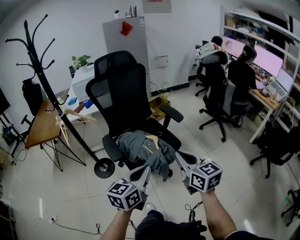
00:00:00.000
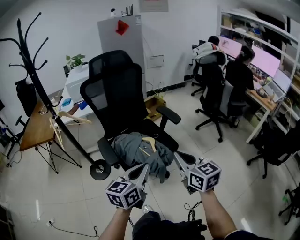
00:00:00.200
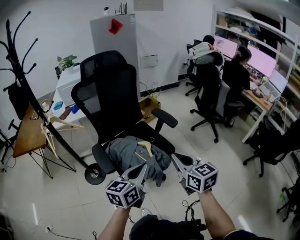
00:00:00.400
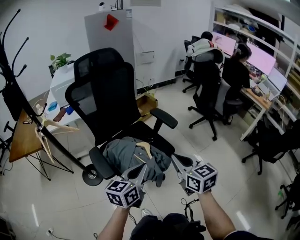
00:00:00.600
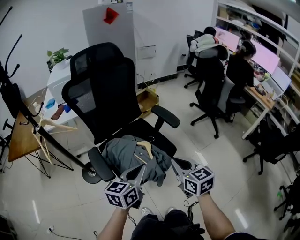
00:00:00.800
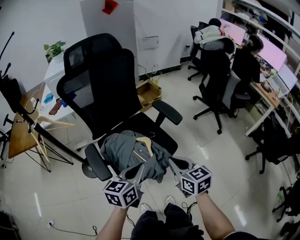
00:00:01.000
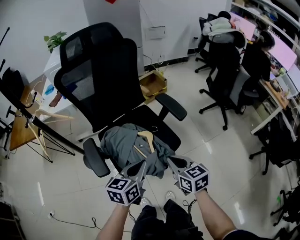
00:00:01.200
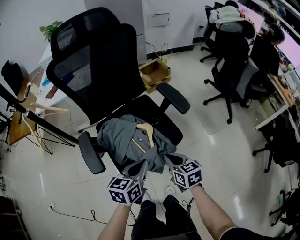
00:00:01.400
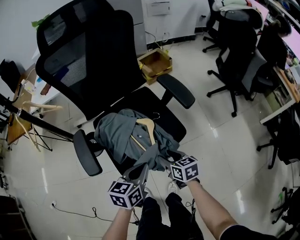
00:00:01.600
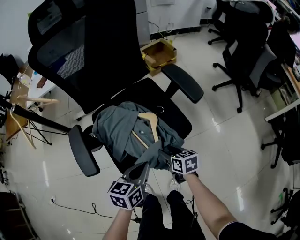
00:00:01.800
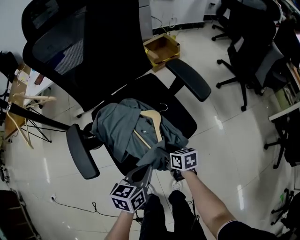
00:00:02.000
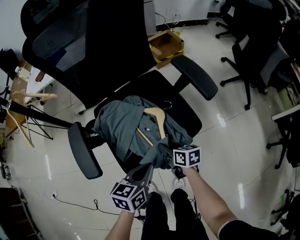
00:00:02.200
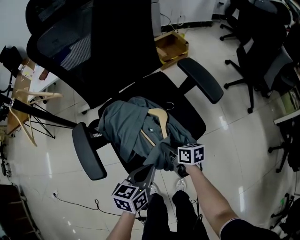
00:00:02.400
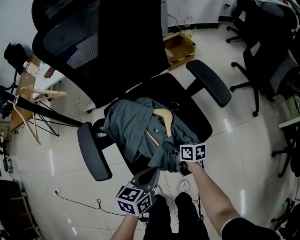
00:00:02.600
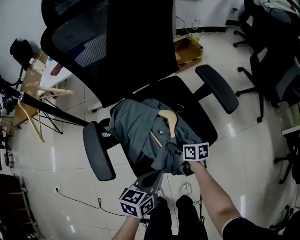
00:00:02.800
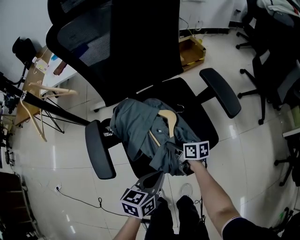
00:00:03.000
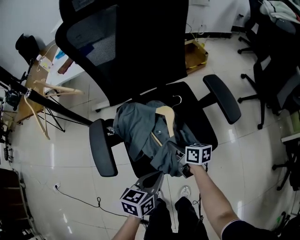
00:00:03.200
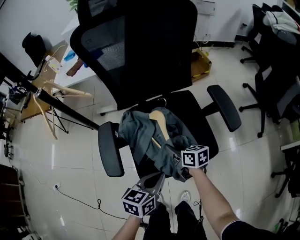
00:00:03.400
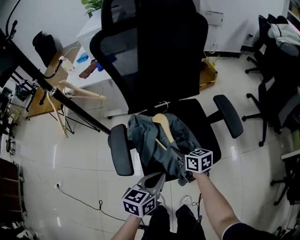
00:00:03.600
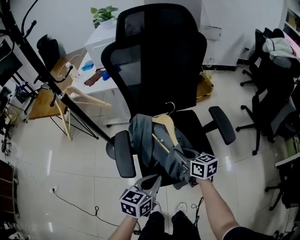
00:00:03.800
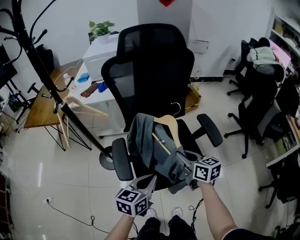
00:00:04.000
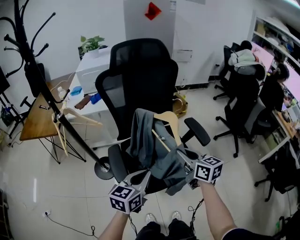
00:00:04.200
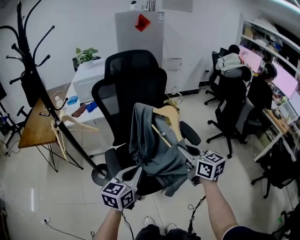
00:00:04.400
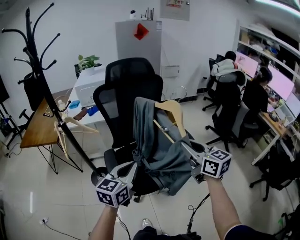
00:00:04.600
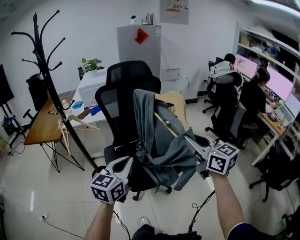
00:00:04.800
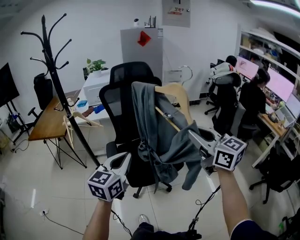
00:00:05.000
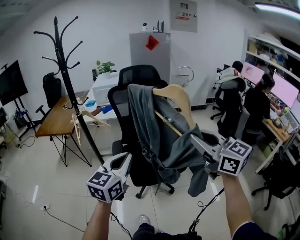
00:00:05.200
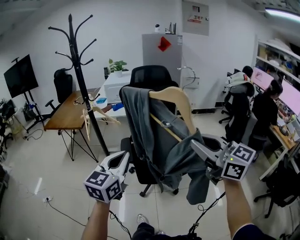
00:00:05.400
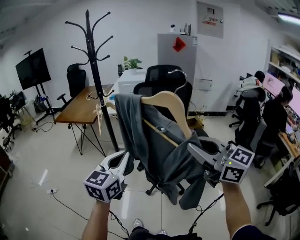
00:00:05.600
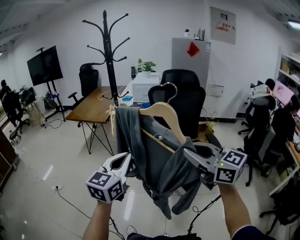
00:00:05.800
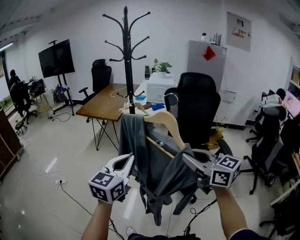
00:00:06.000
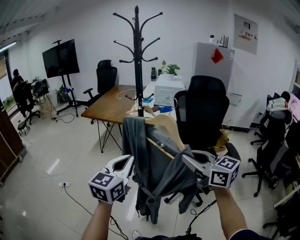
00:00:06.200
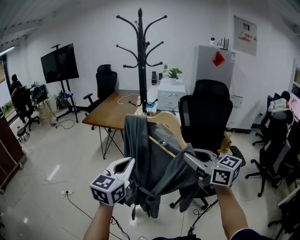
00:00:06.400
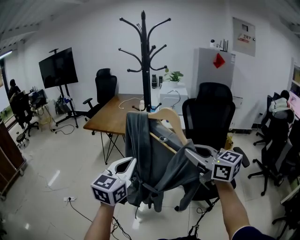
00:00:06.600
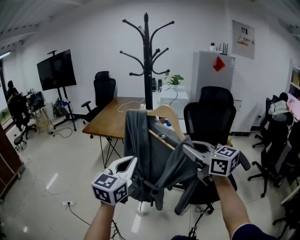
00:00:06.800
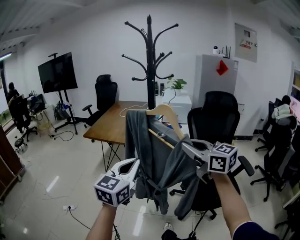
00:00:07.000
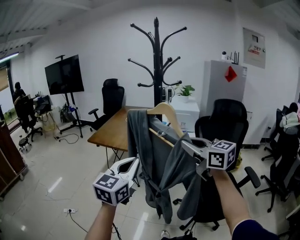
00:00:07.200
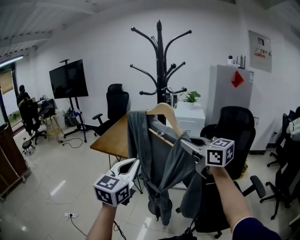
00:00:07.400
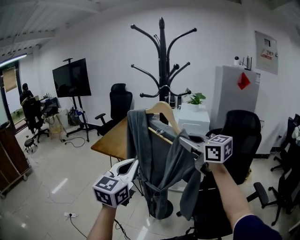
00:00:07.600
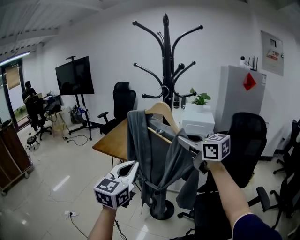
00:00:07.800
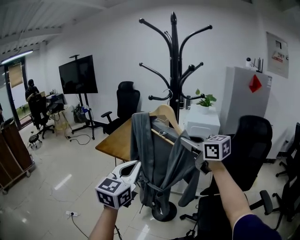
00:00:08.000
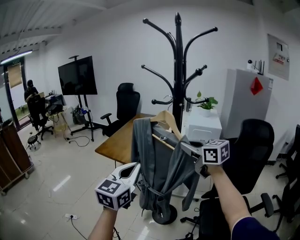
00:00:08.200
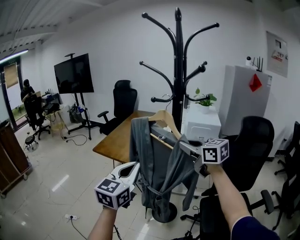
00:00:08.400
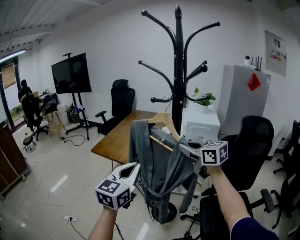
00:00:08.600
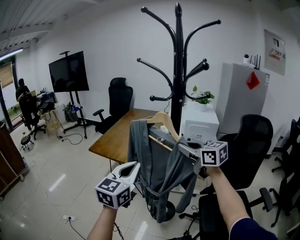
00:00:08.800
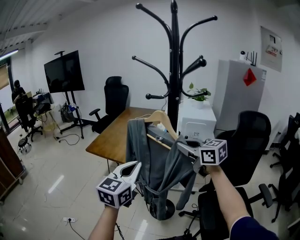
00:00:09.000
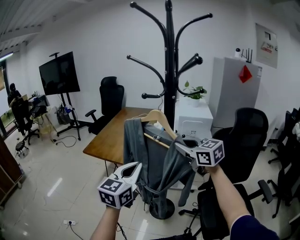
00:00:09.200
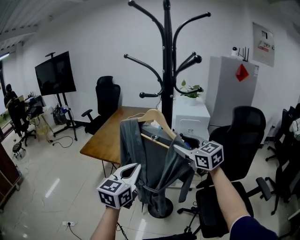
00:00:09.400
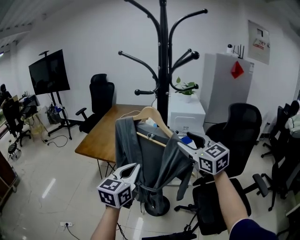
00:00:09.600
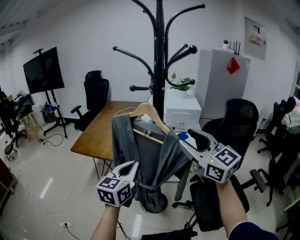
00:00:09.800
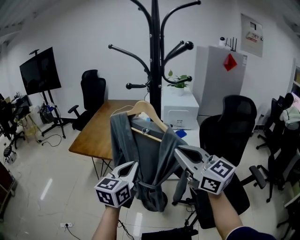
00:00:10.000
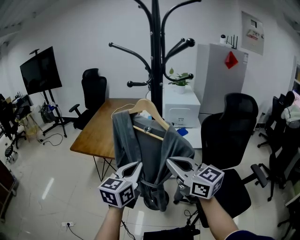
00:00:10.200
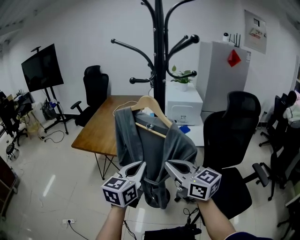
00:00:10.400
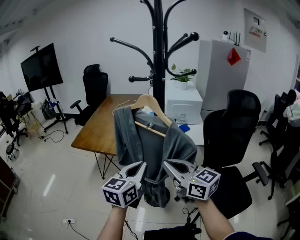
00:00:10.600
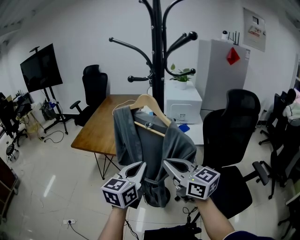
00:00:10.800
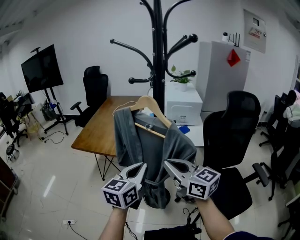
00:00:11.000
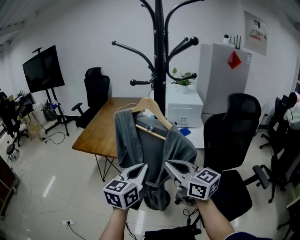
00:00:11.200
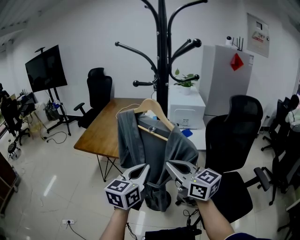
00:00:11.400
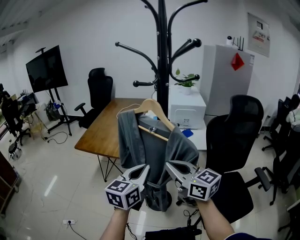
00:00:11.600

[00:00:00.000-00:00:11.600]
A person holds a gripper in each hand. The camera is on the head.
00:00:00.000 to 00:00:01.400: The right gripper travels downward and forward by approximately 30 cm, and changes its angle by some 30 degrees, while the left gripper goes some 25 cm forward and downward.
00:00:01.400 to 00:00:02.800: The right gripper goes approximately 25 cm downward and forward, rotates roughly 30 degrees, and opens up, while the left gripper moves downward, some 10 cm.
00:00:02.800 to 00:00:04.400: The right gripper heads upward, covering some 50 cm, and turns by some 50 degrees, while the left gripper moves upward, about 25 cm, and turns by about 30 degrees.
00:00:04.400 to 00:00:05.800: The left gripper shifts by roughly 30 cm, and swivels some 30 degrees. Meanwhile the right gripper moves roughly 30 cm, and swivels approximately 40 degrees.
00:00:05.800 to 00:00:07.200: The two grippers go approximately 35 cm forward and to the left.
00:00:07.200 to 00:00:08.800: Both grippers move forward, some 25 cm.
00:00:08.800 to 00:00:10.200: The left gripper travels downward and to the right by about 10 cm. Meanwhile the right gripper moves backward, approximately 10 cm, and opens, then closes again.
00:00:10.200 to 00:00:11.600: The grippers move only a little.

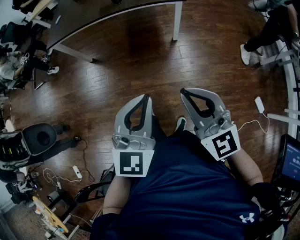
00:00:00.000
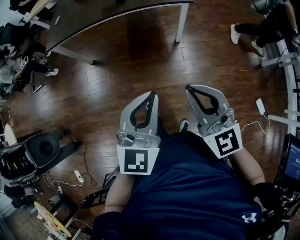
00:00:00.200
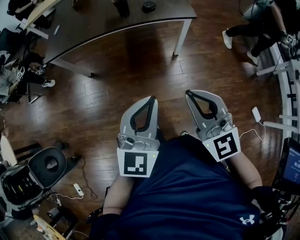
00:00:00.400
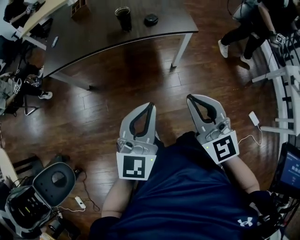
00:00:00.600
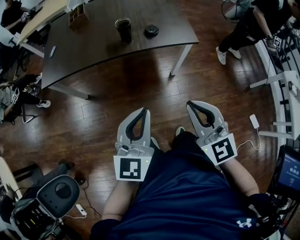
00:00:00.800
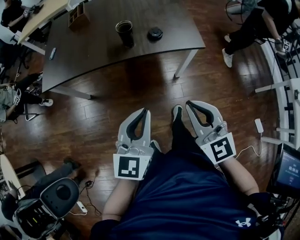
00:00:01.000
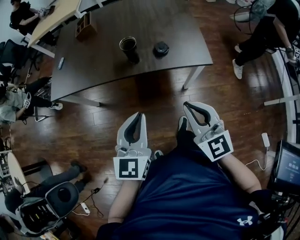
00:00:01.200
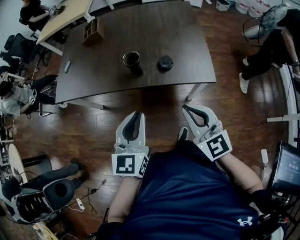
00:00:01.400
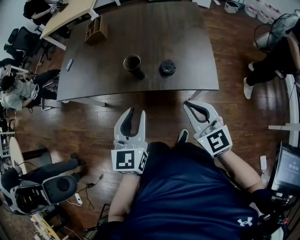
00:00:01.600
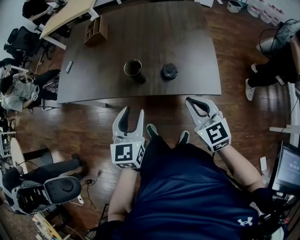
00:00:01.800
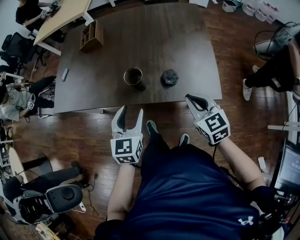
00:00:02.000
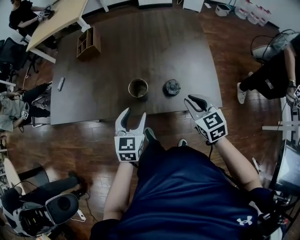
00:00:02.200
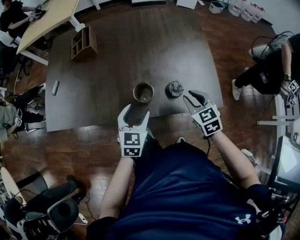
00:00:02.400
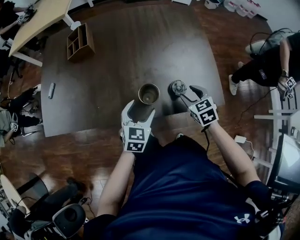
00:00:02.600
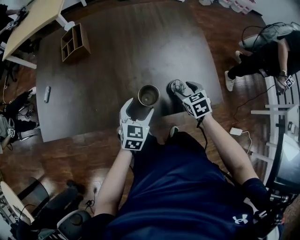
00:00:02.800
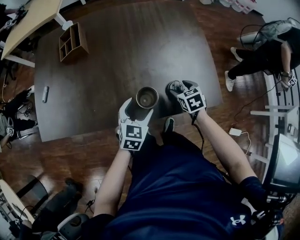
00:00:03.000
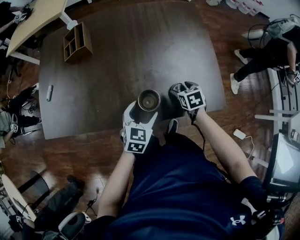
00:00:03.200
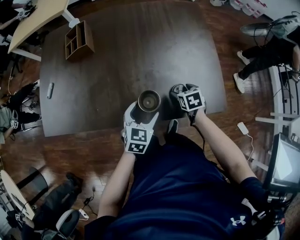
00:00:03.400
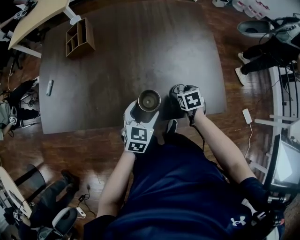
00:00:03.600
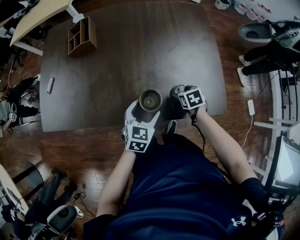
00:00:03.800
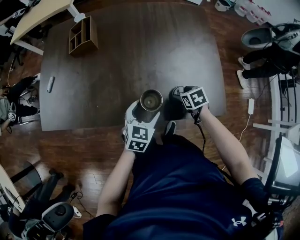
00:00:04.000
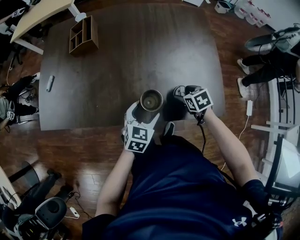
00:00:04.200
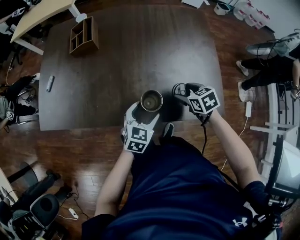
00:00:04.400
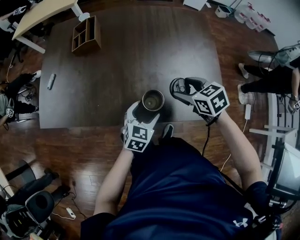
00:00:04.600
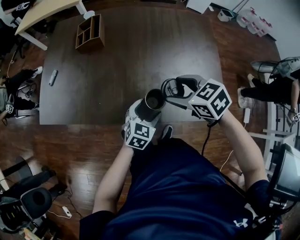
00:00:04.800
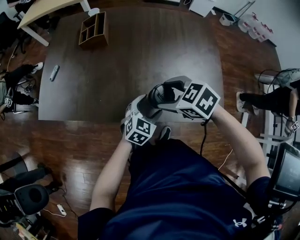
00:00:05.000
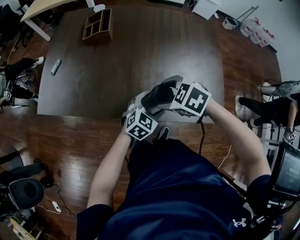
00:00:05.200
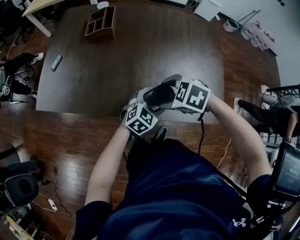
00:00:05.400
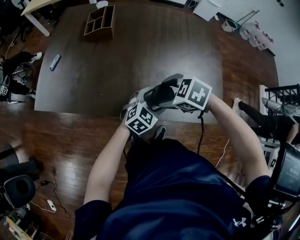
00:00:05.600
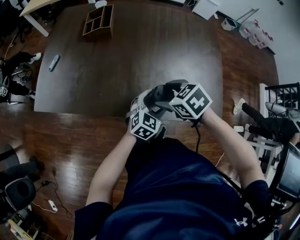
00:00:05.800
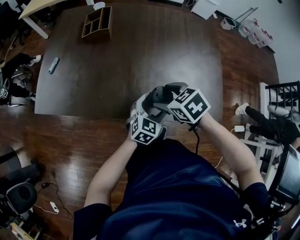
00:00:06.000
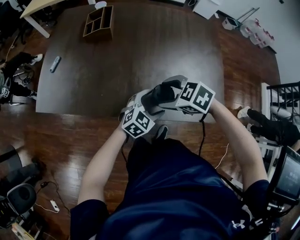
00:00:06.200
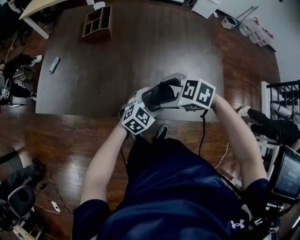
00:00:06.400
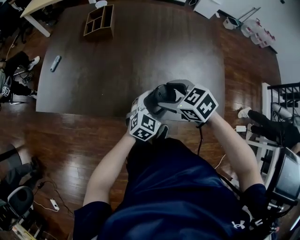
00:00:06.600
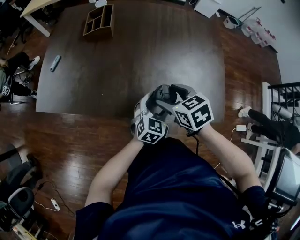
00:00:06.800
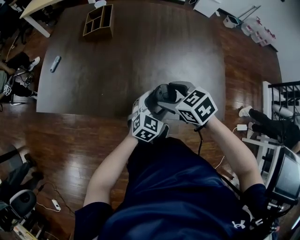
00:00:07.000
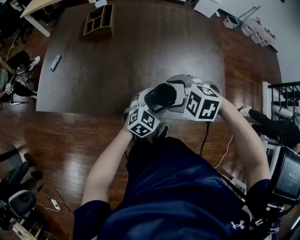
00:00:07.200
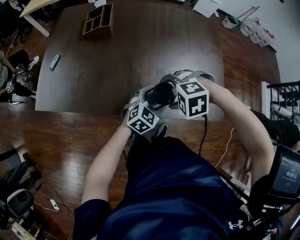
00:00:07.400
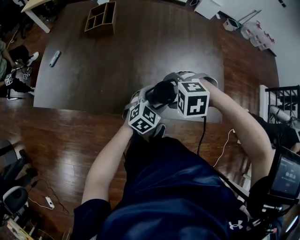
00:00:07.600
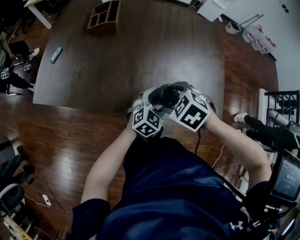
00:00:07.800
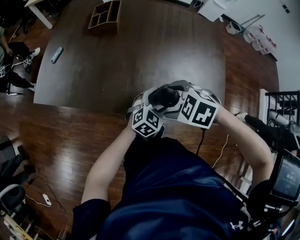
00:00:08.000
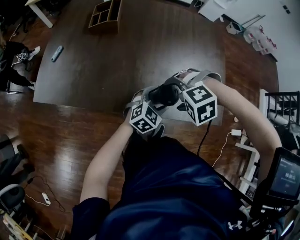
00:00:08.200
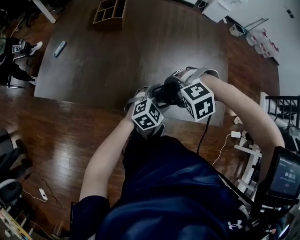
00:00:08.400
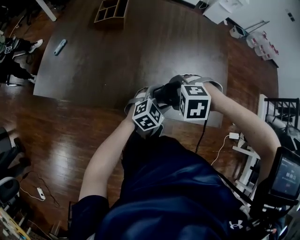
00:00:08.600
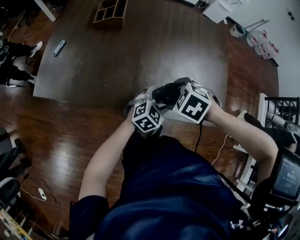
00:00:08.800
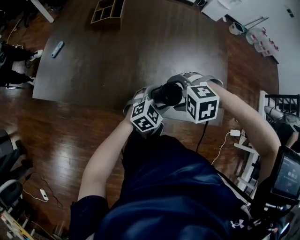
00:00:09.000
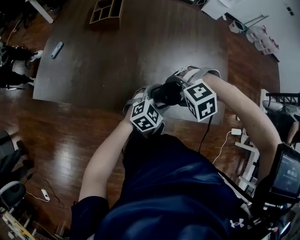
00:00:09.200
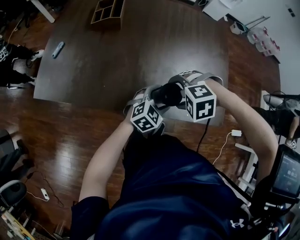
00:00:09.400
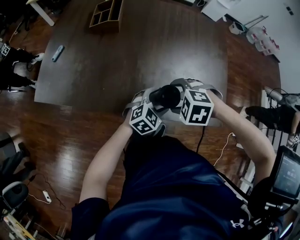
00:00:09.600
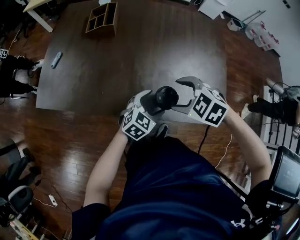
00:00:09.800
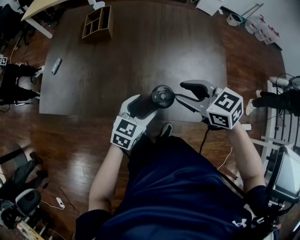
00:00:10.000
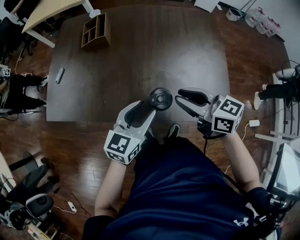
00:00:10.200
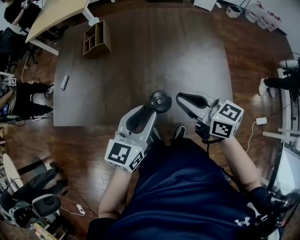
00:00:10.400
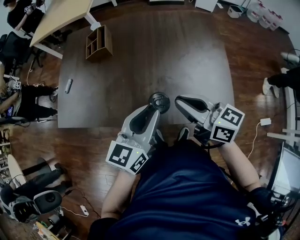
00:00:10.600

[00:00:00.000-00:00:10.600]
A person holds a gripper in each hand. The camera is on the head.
00:00:00.000 to 00:00:01.600: The left gripper heads to the left, covering approximately 15 cm. The right gripper goes forward and backward, about 20 cm each way, reversing 2 times.
00:00:01.600 to 00:00:03.000: Both grippers move downward and forward, about 30 cm. The left gripper turns by some 30 degrees, and opens its fingers; the right gripper tips its fingers downward by approximately 40 degrees, and opens.
00:00:03.000 to 00:00:04.600: The right gripper travels upward and to the left by some 15 cm, and changes its angle by roughly 20 degrees.
00:00:04.600 to 00:00:06.000: The right gripper changes place by some 15 cm.
00:00:06.000 to 00:00:07.600: The right gripper twists about 50 degrees counterclockwise, seen from behind.
00:00:09.000 to 00:00:10.600: The right gripper is displaced upward by approximately 15 cm, tilts its fingers approximately 70 degrees upward, and closes up. The left gripper moves upward, roughly 25 cm, rotates approximately 40 degrees, and closes up.

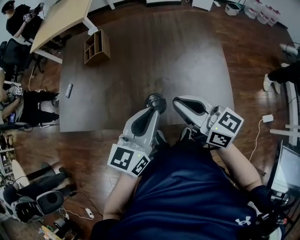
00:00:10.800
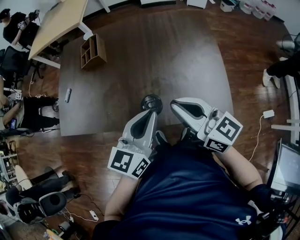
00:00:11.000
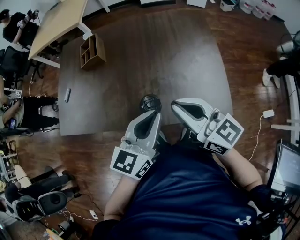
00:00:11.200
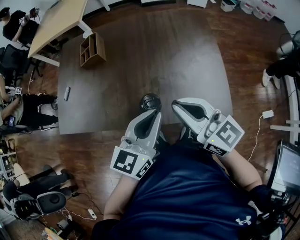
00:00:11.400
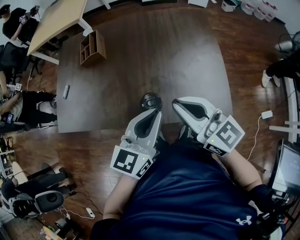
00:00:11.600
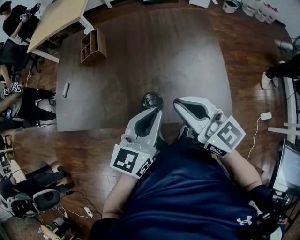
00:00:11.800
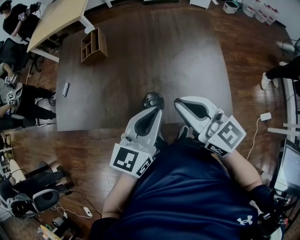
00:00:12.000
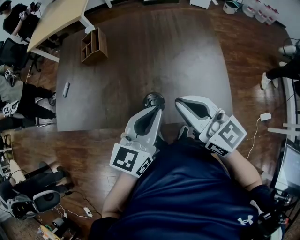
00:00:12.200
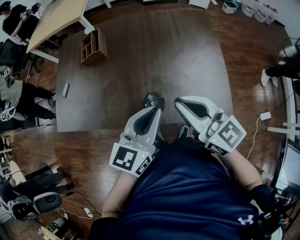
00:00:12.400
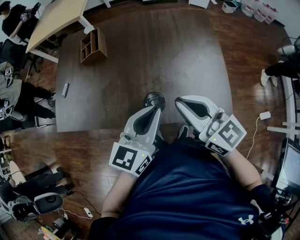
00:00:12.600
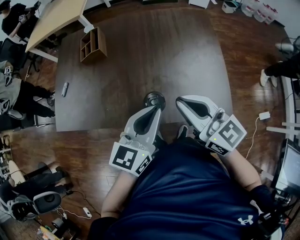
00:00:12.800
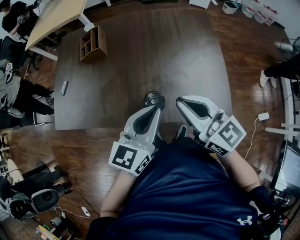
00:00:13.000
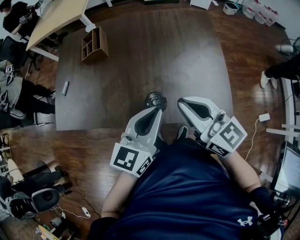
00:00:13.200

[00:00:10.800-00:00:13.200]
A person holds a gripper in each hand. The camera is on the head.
00:00:10.800 to 00:00:12.000: The grippers make only small movements.
00:00:12.000 to 00:00:13.200: Both grippers stay put.
